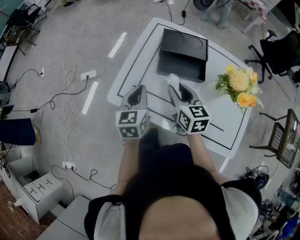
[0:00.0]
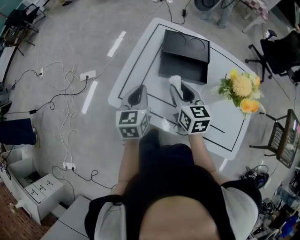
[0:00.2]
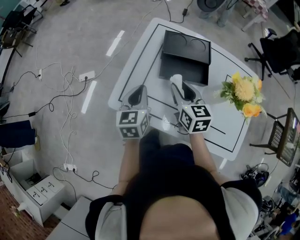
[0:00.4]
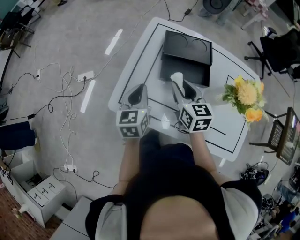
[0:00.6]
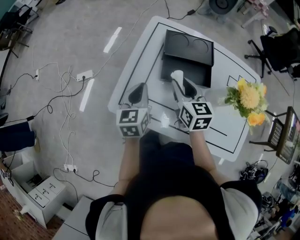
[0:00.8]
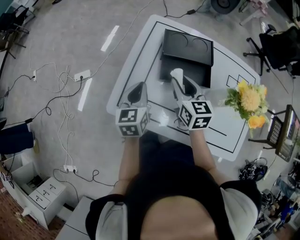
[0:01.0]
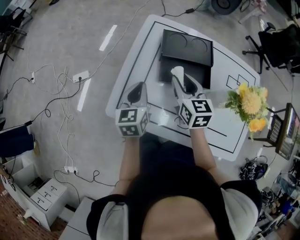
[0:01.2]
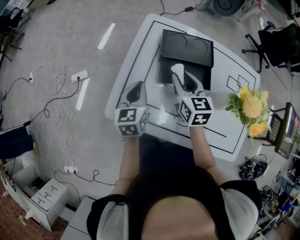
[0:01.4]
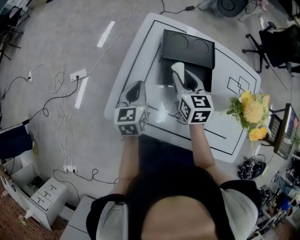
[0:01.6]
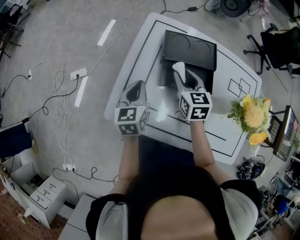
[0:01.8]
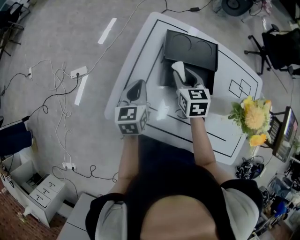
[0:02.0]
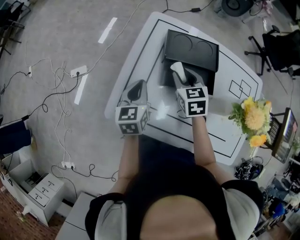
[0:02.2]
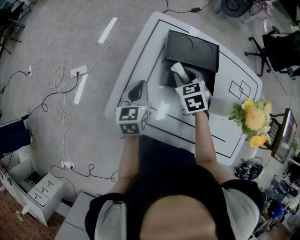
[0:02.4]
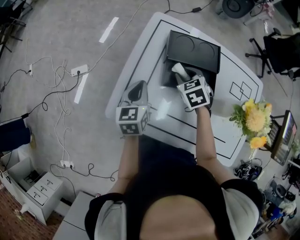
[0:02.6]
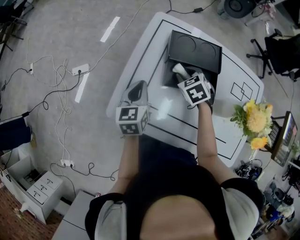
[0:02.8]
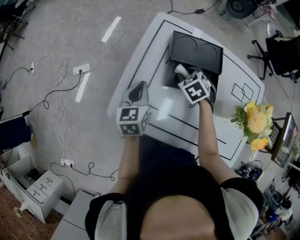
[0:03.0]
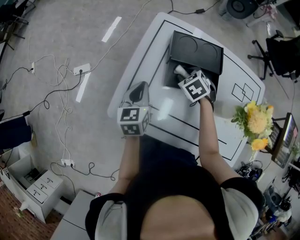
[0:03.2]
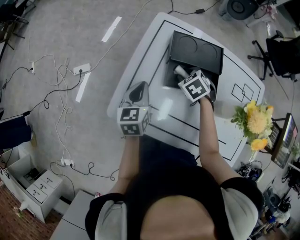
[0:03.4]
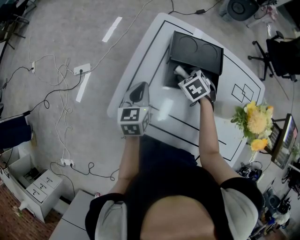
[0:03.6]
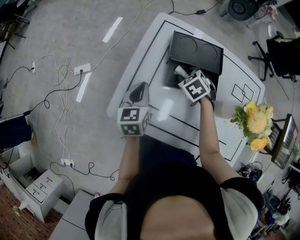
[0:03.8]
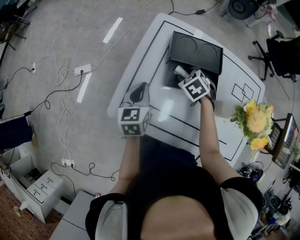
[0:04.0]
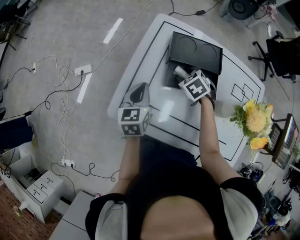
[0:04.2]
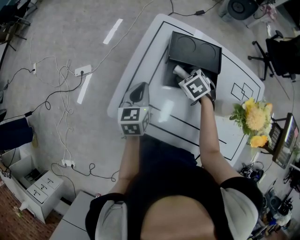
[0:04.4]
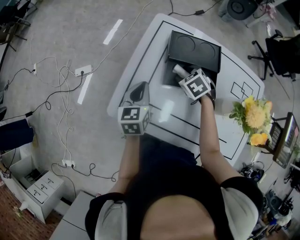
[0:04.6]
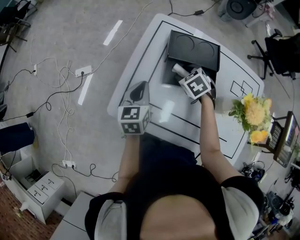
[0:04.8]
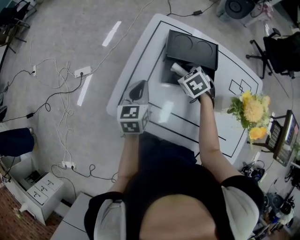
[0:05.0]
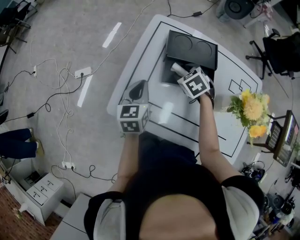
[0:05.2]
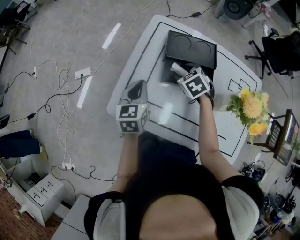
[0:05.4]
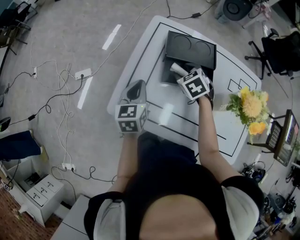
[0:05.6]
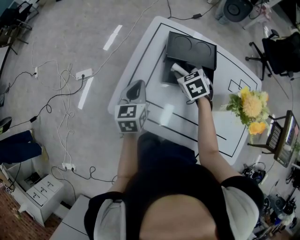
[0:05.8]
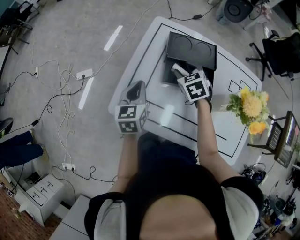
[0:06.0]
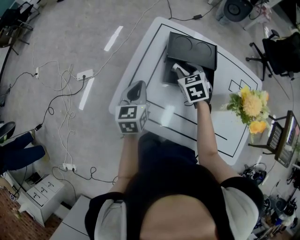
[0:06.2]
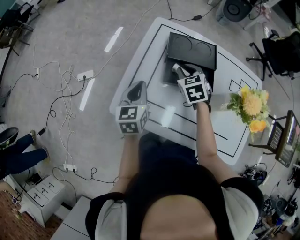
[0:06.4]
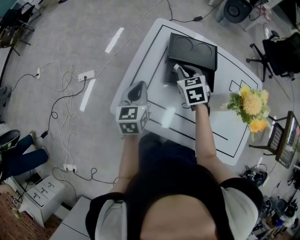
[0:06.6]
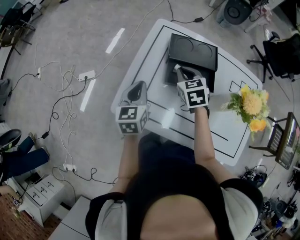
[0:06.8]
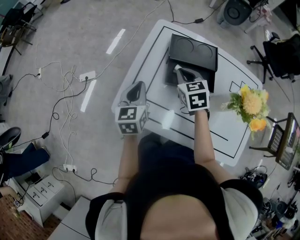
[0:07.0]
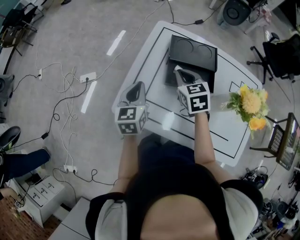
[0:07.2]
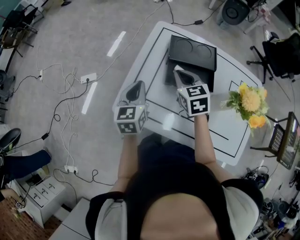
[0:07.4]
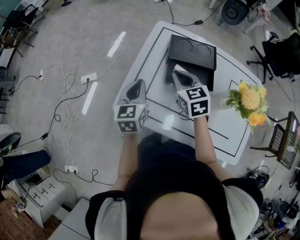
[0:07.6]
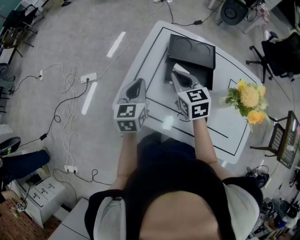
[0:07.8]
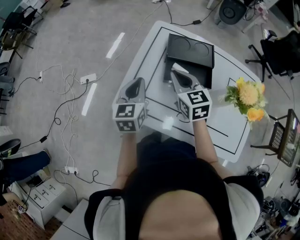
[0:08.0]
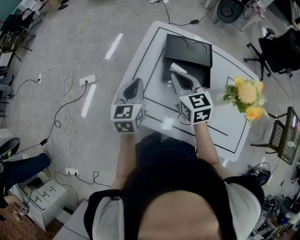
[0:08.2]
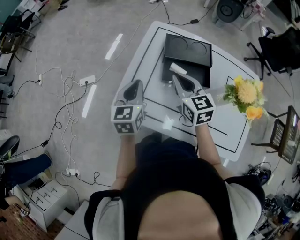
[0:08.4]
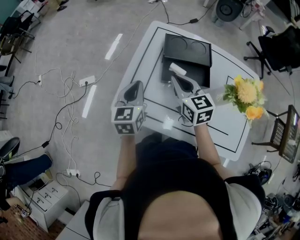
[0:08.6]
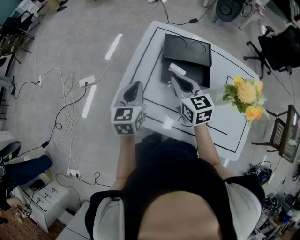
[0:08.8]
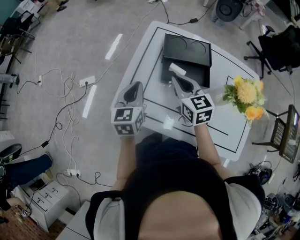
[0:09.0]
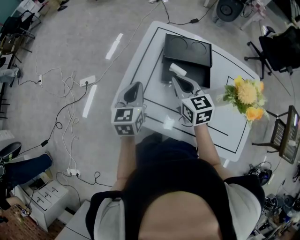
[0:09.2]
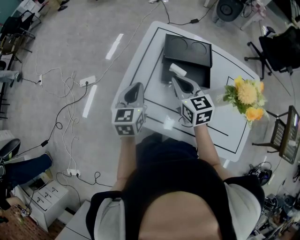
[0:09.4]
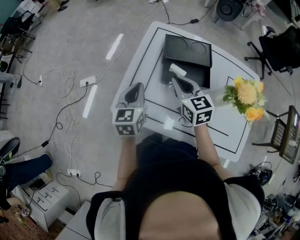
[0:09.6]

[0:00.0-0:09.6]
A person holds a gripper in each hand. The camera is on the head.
0:00.0 to 0:01.6: The left gripper heads forward and downward, covering roughly 10 cm, while the right gripper heads forward, covering some 15 cm.
0:01.6 to 0:03.2: The right gripper moves downward, approximately 10 cm, and angles its fingers downward, by roughly 40 degrees.
0:03.2 to 0:04.8: The right gripper opens.
0:04.8 to 0:06.4: The right gripper travels upward by approximately 5 cm, turns by roughly 20 degrees, and closes up.
0:06.4 to 0:08.0: The right gripper heads upward, backward and to the left, covering approximately 10 cm, and changes its angle by some 20 degrees.
0:08.0 to 0:09.6: The grippers stay close to where they were, moving slightly.

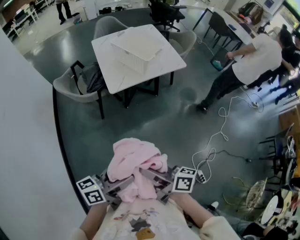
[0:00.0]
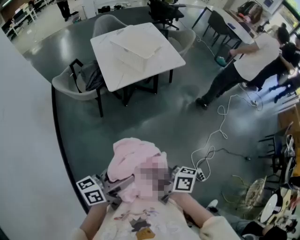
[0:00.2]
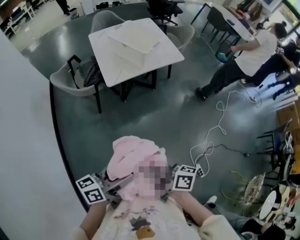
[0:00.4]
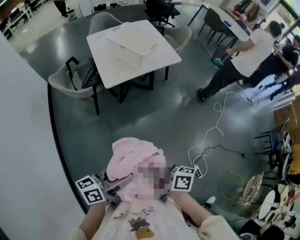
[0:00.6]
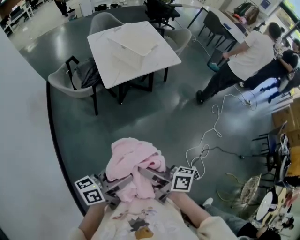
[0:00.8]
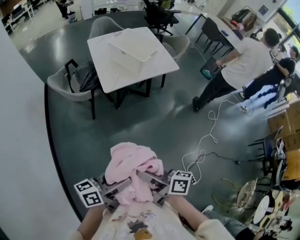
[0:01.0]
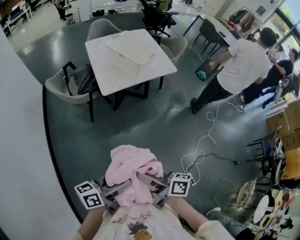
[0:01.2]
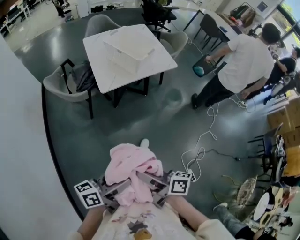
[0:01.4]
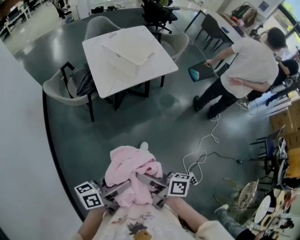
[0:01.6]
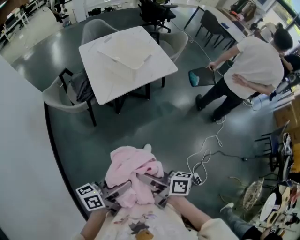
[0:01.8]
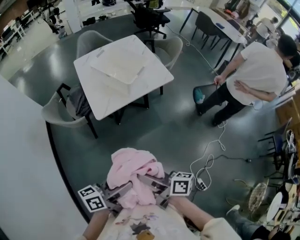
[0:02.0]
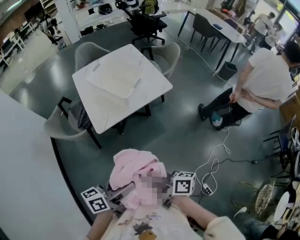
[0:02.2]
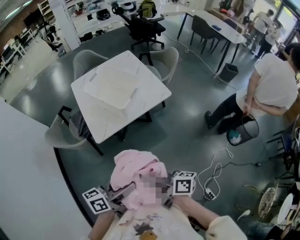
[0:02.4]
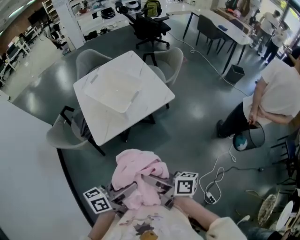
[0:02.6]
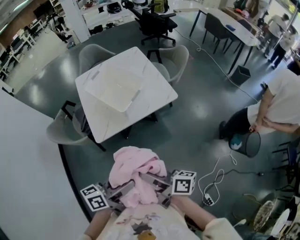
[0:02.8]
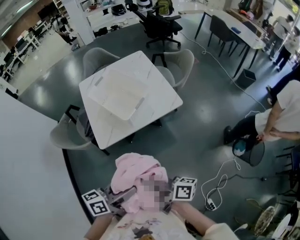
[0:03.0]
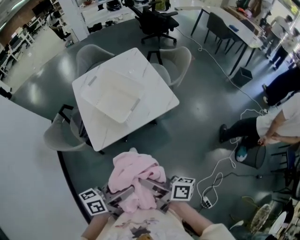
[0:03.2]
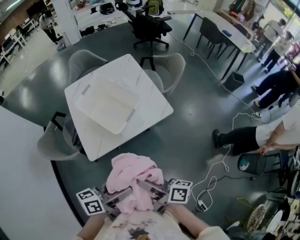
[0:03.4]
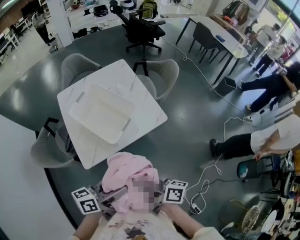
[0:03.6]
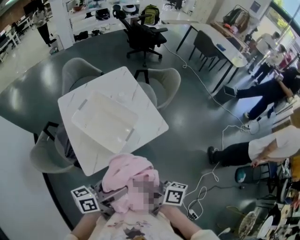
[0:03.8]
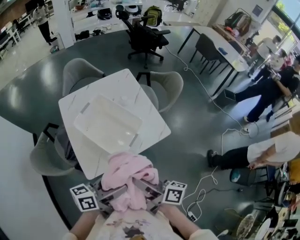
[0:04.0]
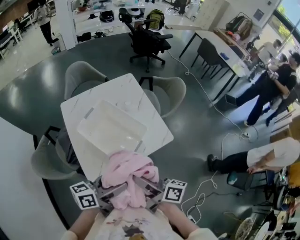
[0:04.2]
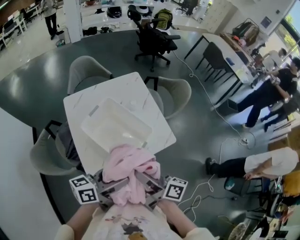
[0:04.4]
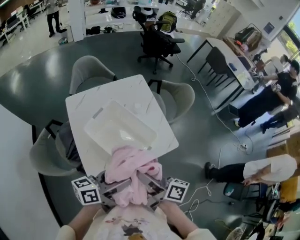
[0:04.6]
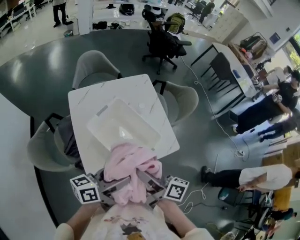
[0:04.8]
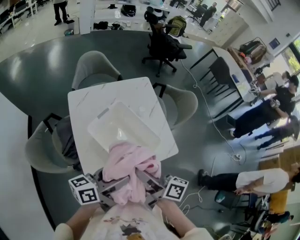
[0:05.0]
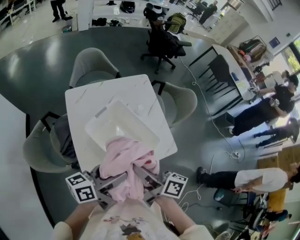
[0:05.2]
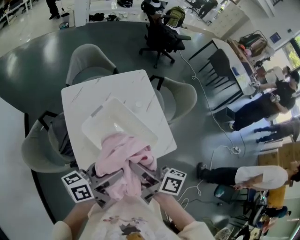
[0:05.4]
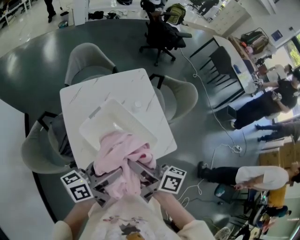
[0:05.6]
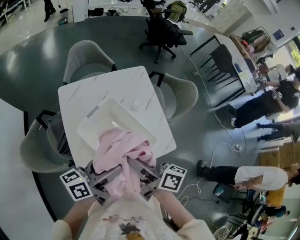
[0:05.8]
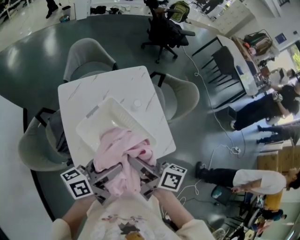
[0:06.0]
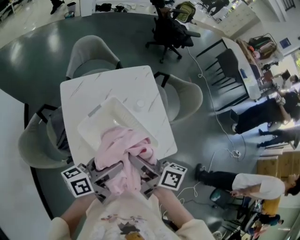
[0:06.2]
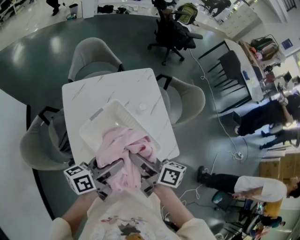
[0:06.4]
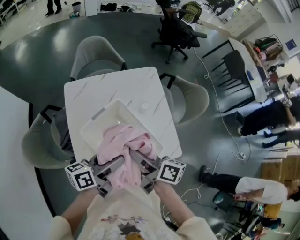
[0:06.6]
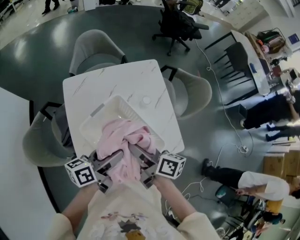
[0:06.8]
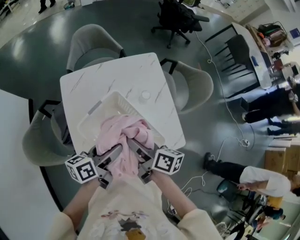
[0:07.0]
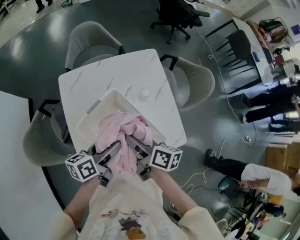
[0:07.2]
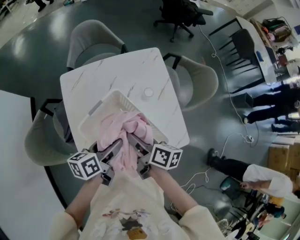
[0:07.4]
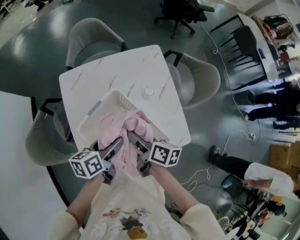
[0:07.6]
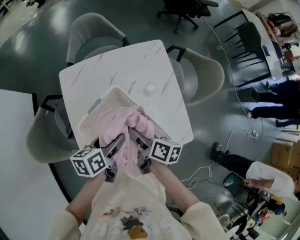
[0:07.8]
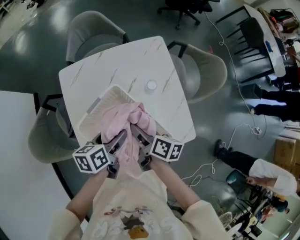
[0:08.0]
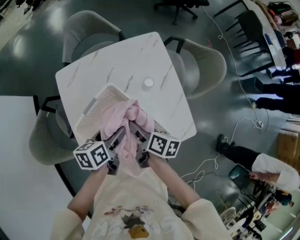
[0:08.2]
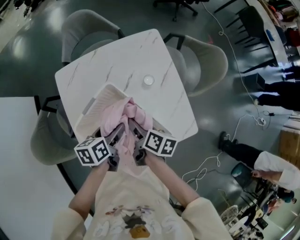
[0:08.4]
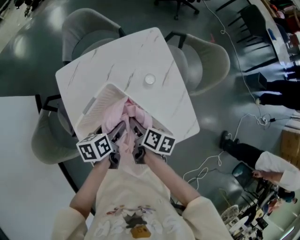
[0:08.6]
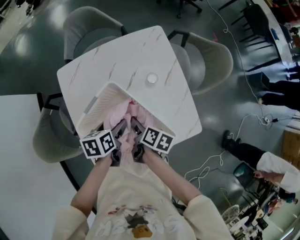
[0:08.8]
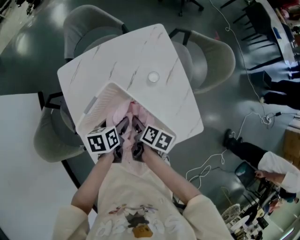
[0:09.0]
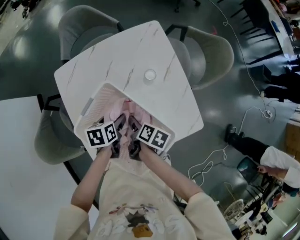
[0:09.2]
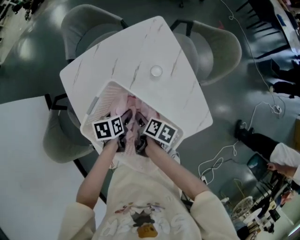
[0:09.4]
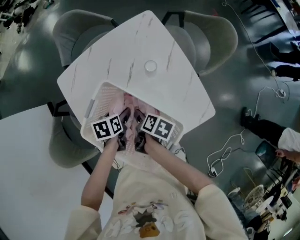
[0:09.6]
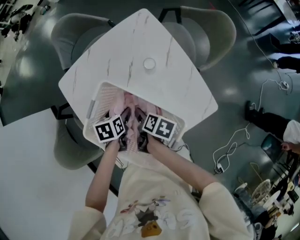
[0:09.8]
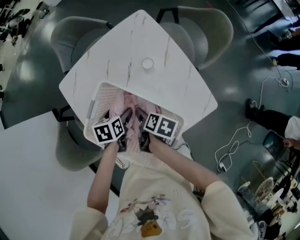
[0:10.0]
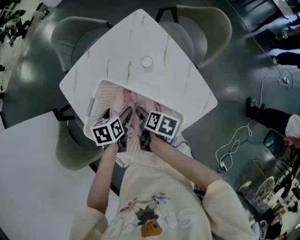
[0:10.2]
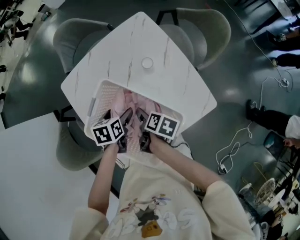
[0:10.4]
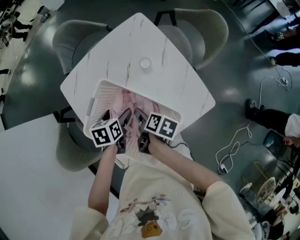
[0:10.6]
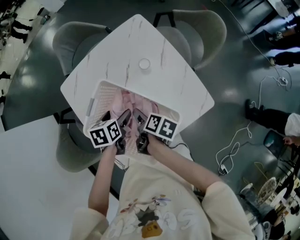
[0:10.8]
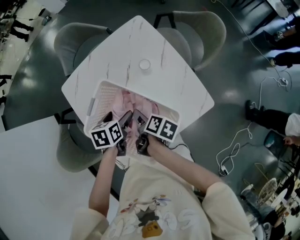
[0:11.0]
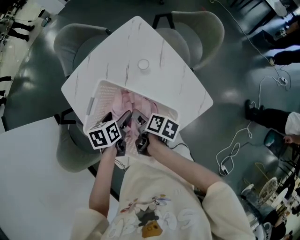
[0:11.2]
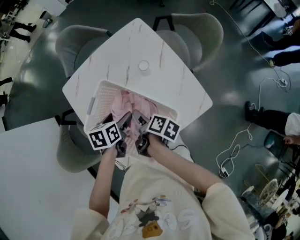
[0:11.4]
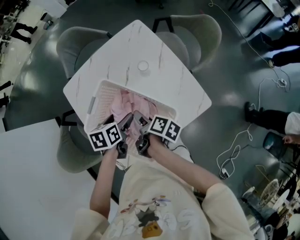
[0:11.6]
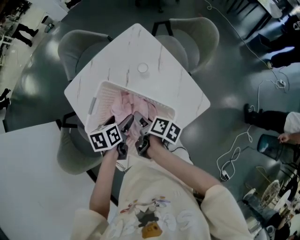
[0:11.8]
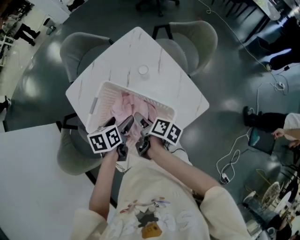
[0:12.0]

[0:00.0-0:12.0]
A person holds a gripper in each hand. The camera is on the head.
0:01.6 to 0:03.0: The left gripper changes place by approximately 35 cm.
0:03.0 to 0:04.4: The left gripper moves some 30 cm.
0:04.4 to 0:06.0: The left gripper ends up roughly 15 cm from where it was.
0:06.0 to 0:07.6: The left gripper travels downward by approximately 15 cm, and angles its fingers downward, by some 30 degrees.
0:07.6 to 0:09.0: The left gripper heads downward, covering about 10 cm, and turns by roughly 30 degrees.
0:10.4 to 0:12.0: The left gripper is displaced upward by approximately 5 cm.

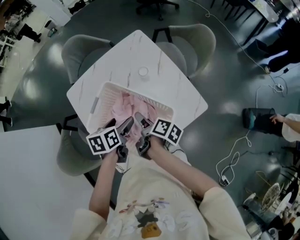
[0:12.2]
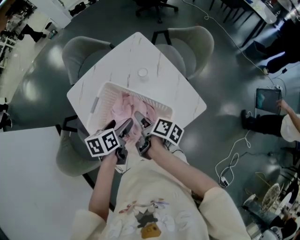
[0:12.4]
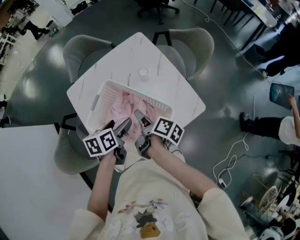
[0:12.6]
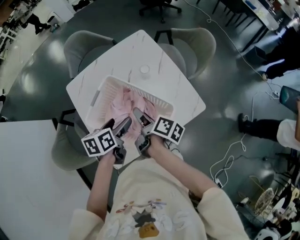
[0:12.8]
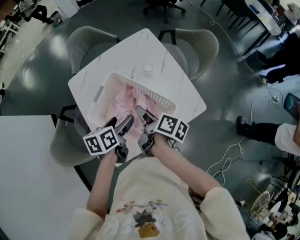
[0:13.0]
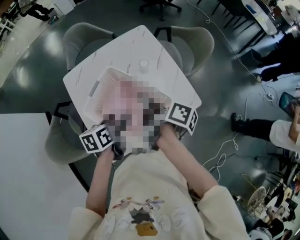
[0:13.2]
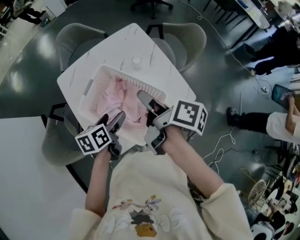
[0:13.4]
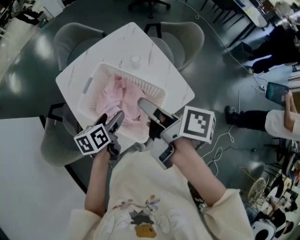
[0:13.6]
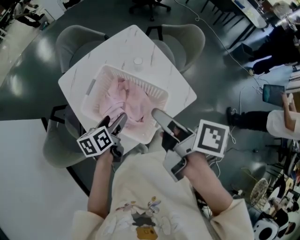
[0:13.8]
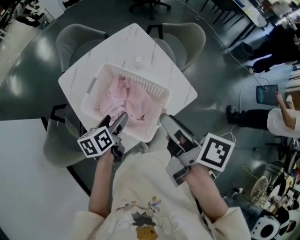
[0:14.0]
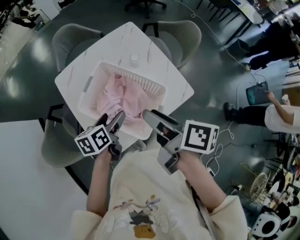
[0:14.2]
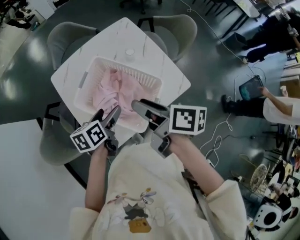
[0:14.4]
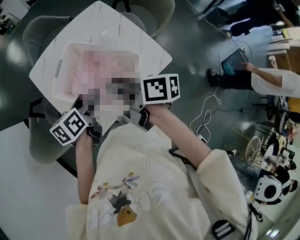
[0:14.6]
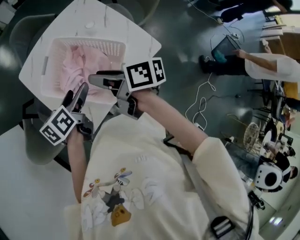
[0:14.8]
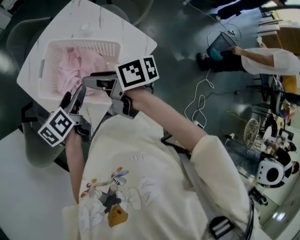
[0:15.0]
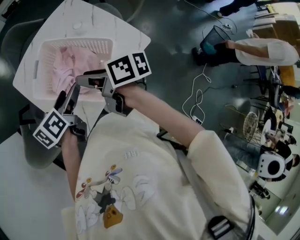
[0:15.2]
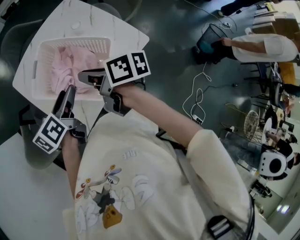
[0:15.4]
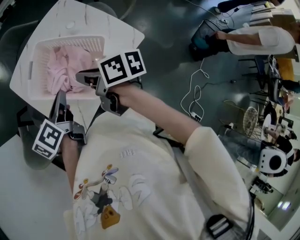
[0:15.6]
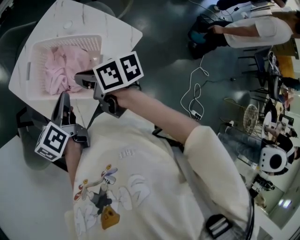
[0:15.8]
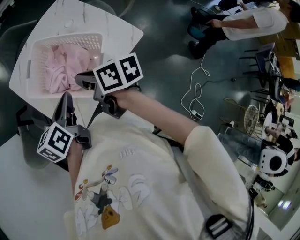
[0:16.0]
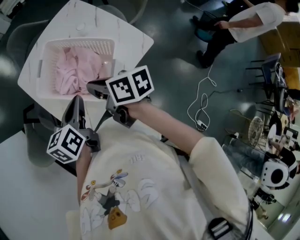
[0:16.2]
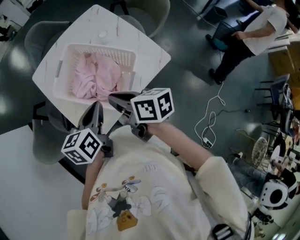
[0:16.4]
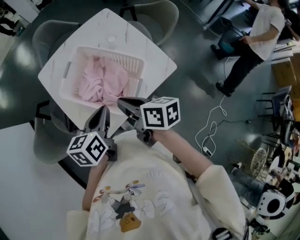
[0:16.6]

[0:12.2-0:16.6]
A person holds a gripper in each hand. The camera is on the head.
0:12.2 to 0:13.6: The left gripper moves about 10 cm.
0:13.6 to 0:15.2: The left gripper moves some 5 cm.
0:15.2 to 0:16.6: The left gripper changes place by some 5 cm, and closes.
